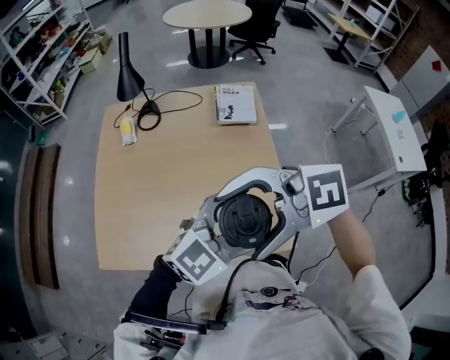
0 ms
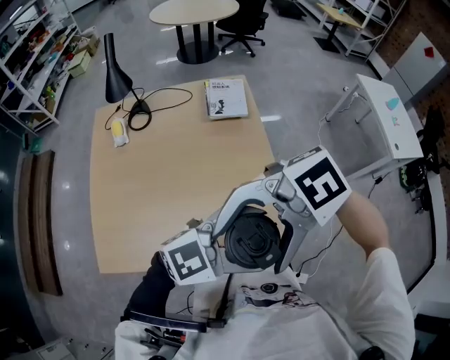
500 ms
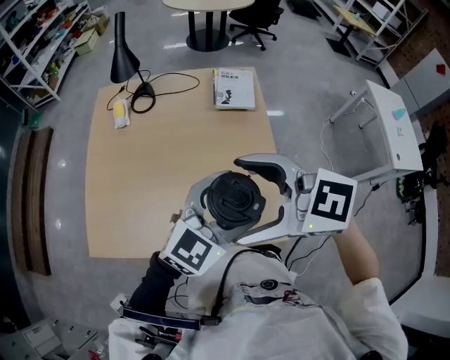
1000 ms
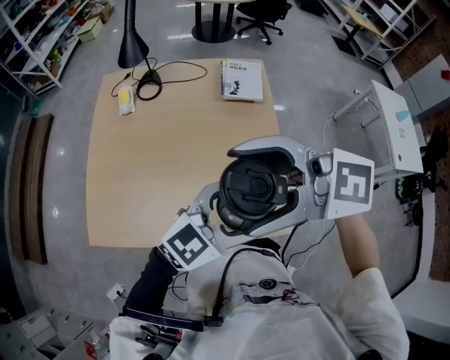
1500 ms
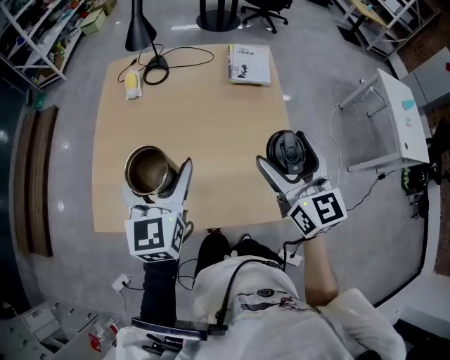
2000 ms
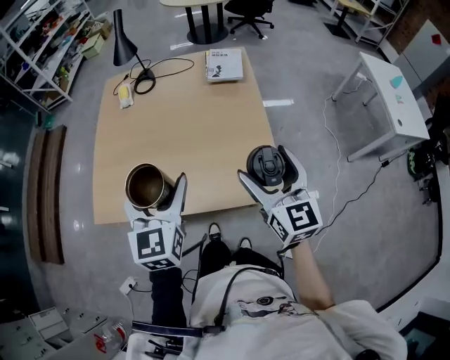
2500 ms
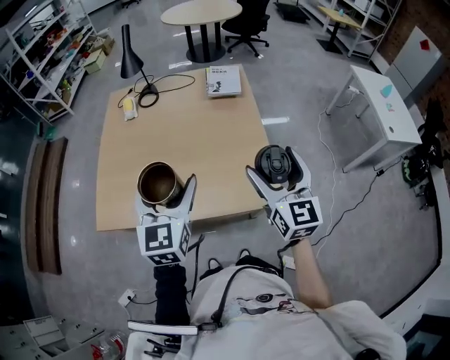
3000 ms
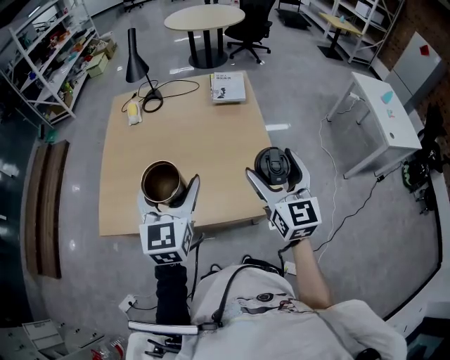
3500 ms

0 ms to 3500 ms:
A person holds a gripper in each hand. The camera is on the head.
0 ms to 2000 ms: The right gripper ends up roughly 15 cm from where it was, and changes its angle by roughly 90 degrees. Meanwhile the left gripper moves roughly 25 cm, and rotates roughly 70 degrees.
2000 ms to 3500 ms: The two grippers go some 15 cm backward and to the right.

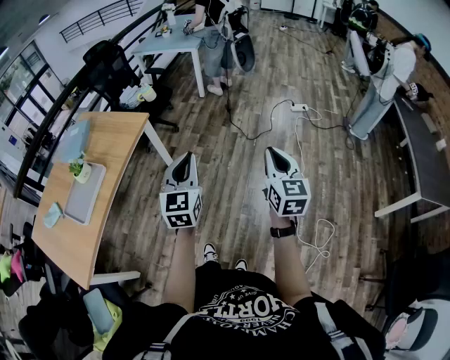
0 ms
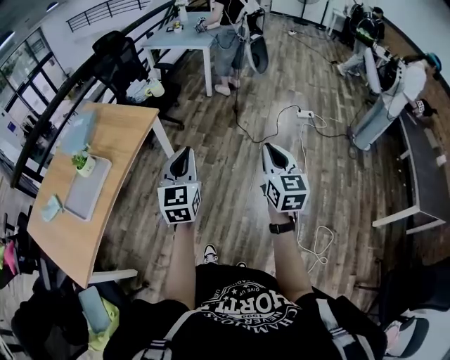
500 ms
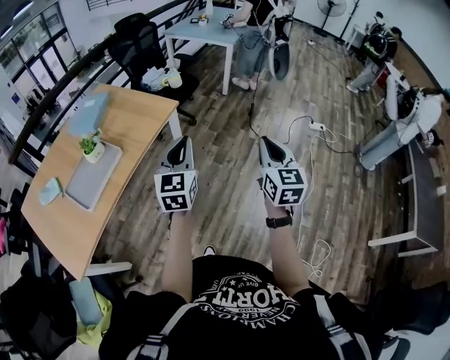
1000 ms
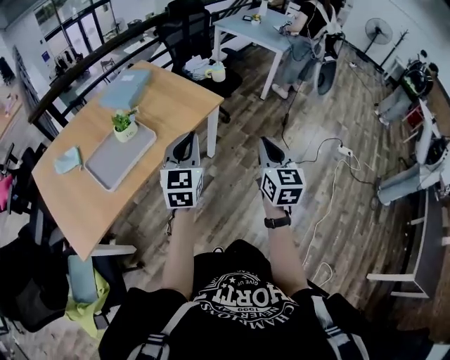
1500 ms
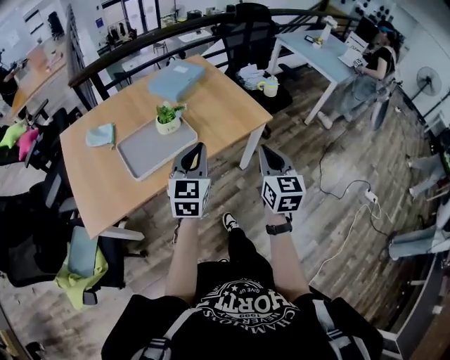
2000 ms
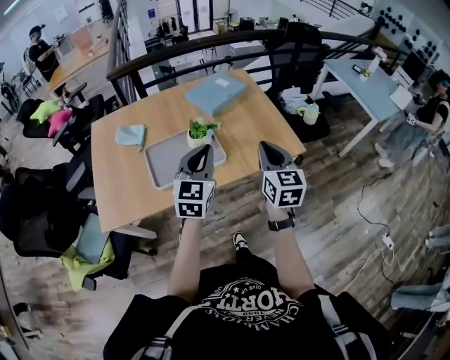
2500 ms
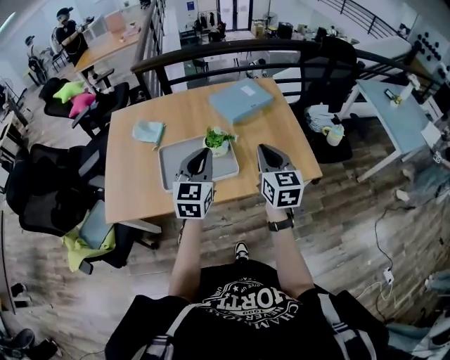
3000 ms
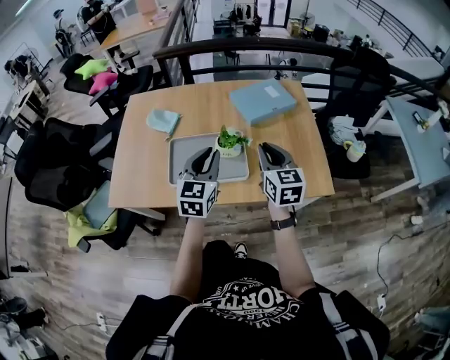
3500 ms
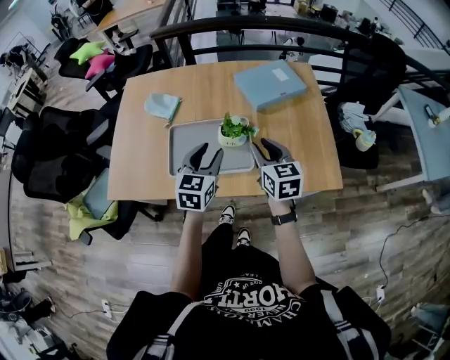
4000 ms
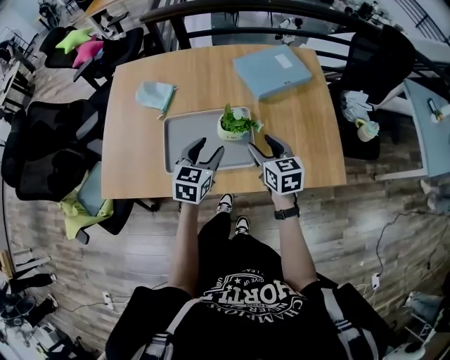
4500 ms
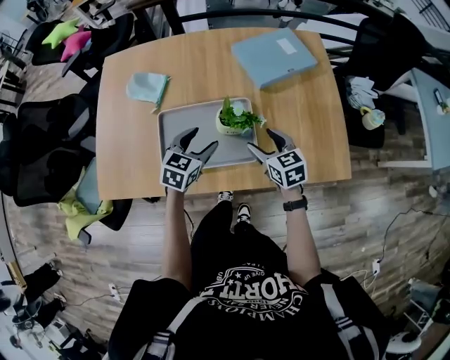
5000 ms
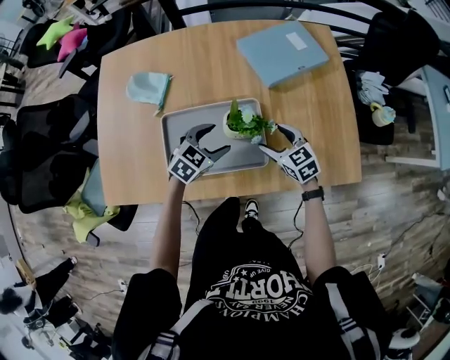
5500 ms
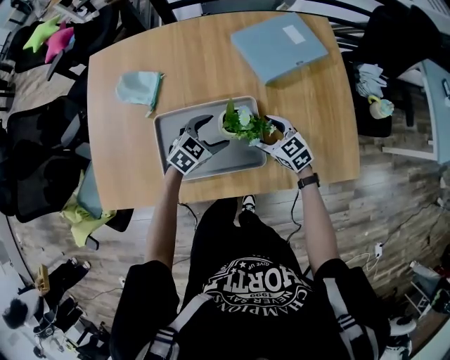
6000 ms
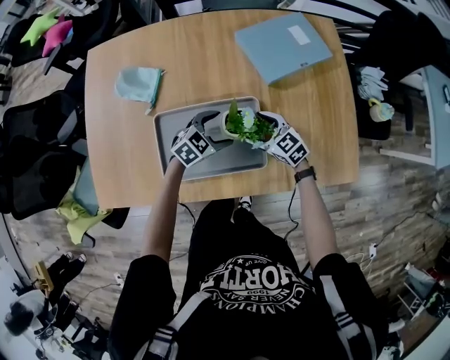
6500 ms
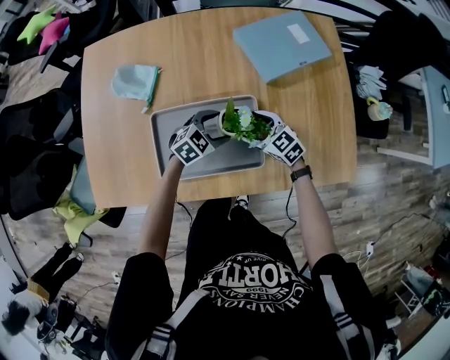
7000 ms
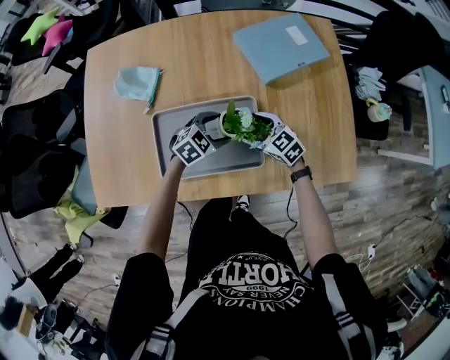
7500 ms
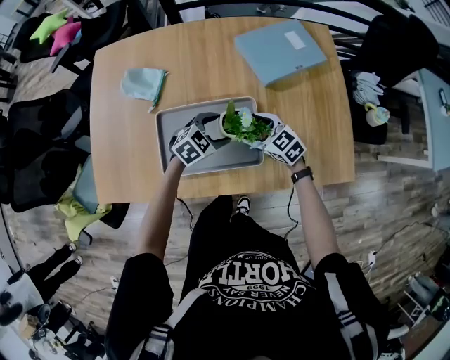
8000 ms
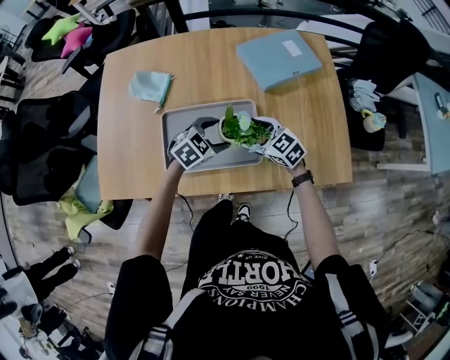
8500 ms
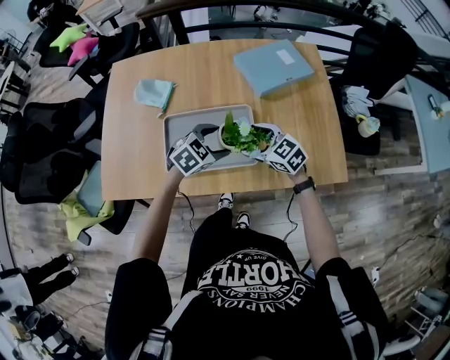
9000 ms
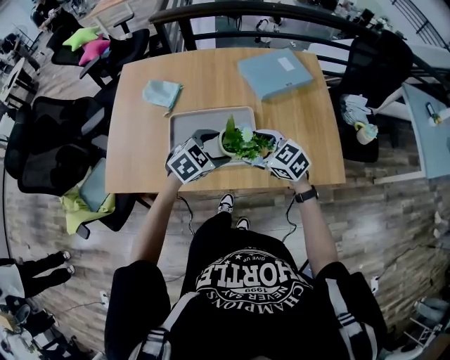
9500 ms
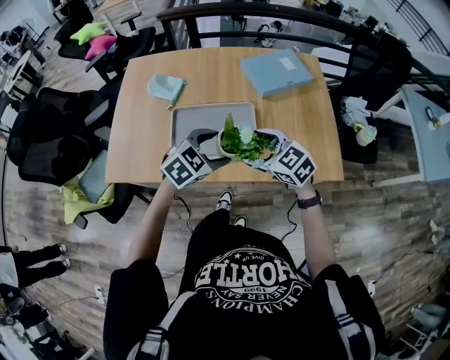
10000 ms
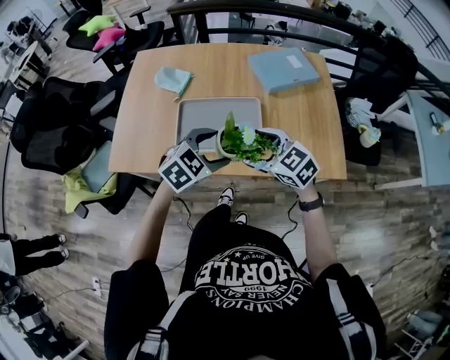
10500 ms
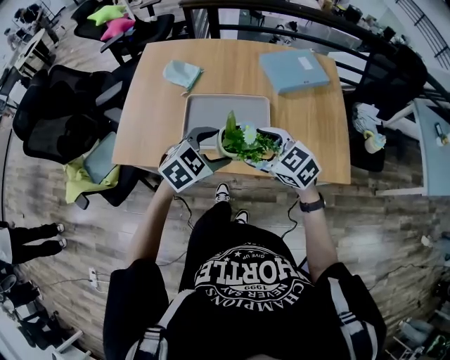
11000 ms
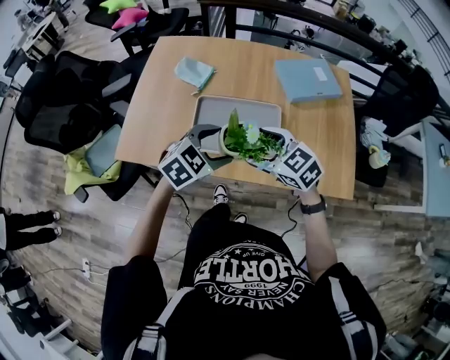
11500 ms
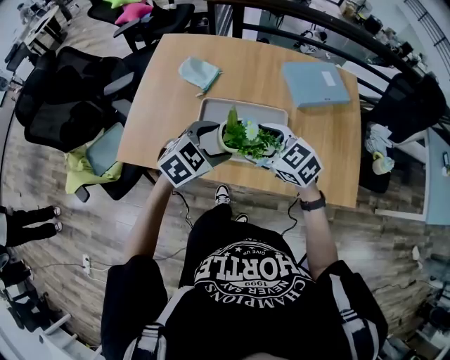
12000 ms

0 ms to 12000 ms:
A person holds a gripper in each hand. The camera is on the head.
0 ms to 2000 ms: The pair of grippers is taken roughly 50 cm. The left gripper rotates roughly 30 degrees; the right gripper rotates some 40 degrees.
2000 ms to 4000 ms: The left gripper shifts by approximately 25 cm, changes its angle by roughly 30 degrees, and opens its fingers. The right gripper moves about 35 cm, and turns by approximately 40 degrees.
4000 ms to 6000 ms: Both grippers travel together downward and forward, roughly 25 cm. The right gripper rotates approximately 30 degrees, and opens up. The left gripper changes its angle by about 50 degrees, and opens.
6000 ms to 8000 ms: The grippers make only small movements.
8000 ms to 10000 ms: The two grippers go approximately 25 cm upward and backward.
10000 ms to 12000 ms: The right gripper is displaced to the left and forward by about 10 cm; the left gripper is displaced to the left by about 10 cm.

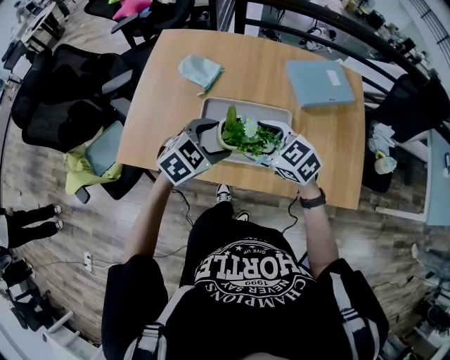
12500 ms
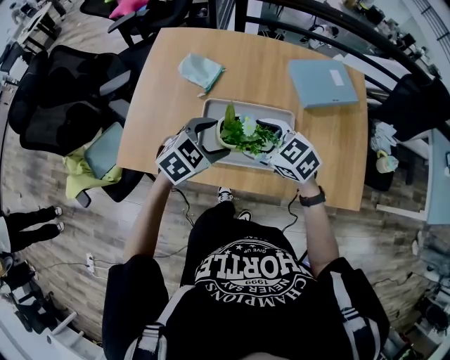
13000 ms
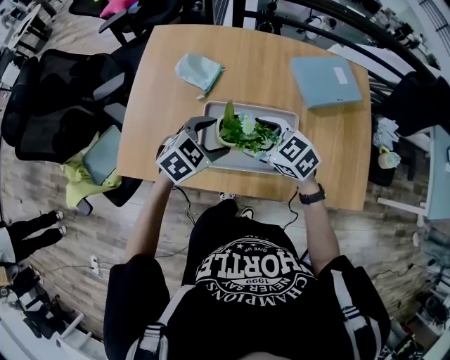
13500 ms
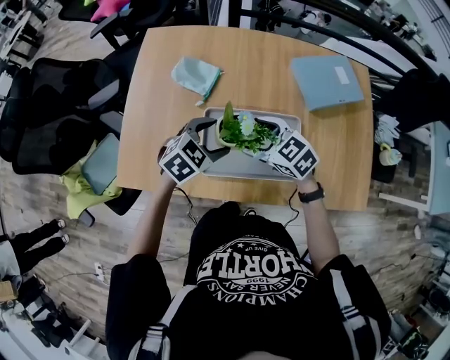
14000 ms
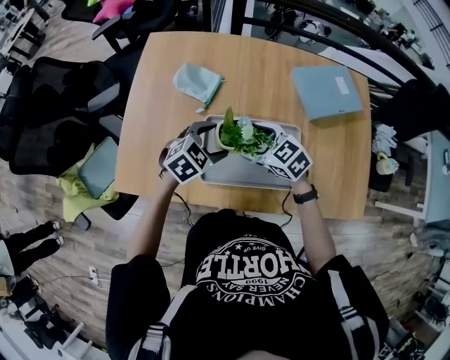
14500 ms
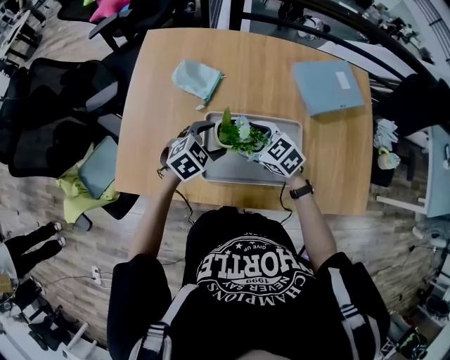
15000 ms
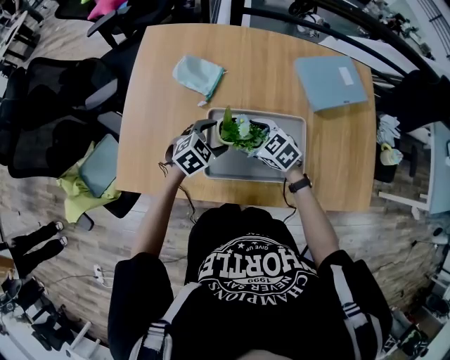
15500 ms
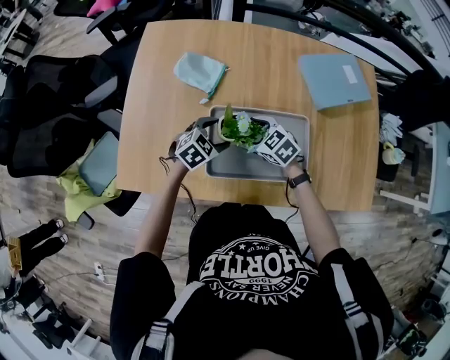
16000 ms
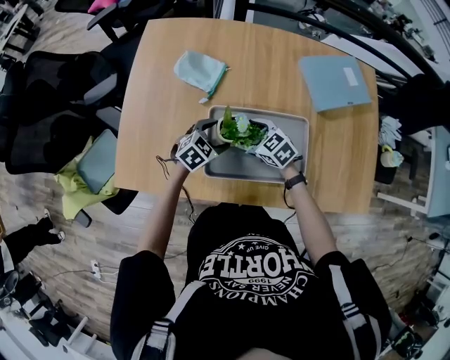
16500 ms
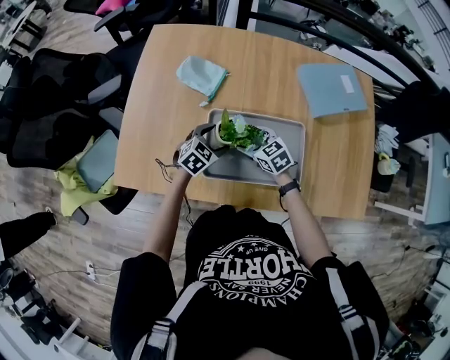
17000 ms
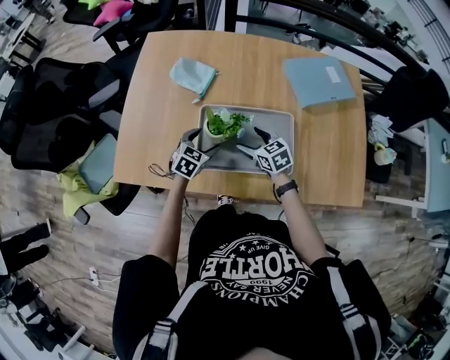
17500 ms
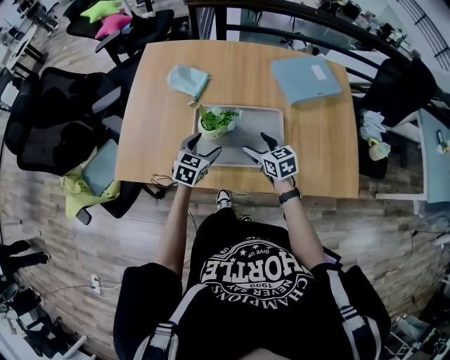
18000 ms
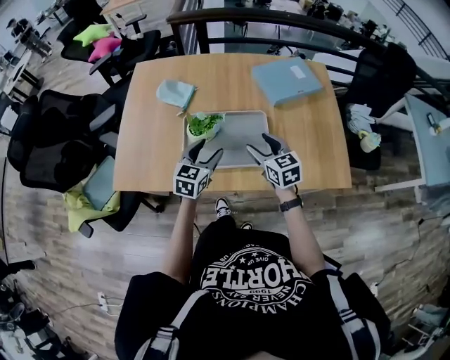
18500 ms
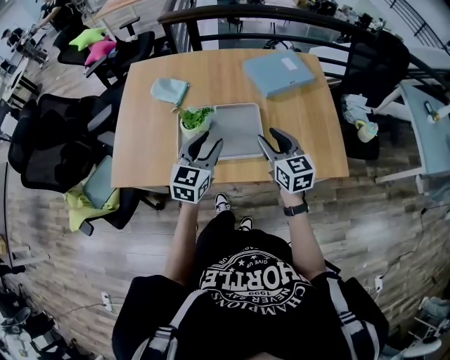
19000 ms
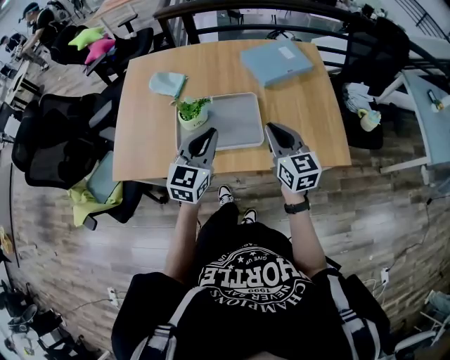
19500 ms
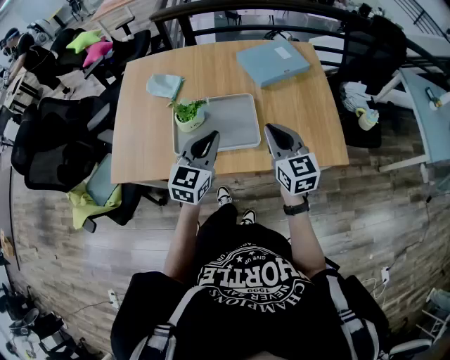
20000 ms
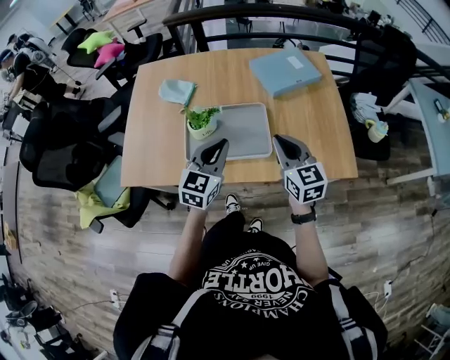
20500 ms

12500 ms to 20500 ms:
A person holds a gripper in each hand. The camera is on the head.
12500 ms to 14500 ms: The grippers both shift forward and downward by roughly 15 cm.
14500 ms to 16500 ms: The two grippers go roughly 15 cm downward.
16500 ms to 18500 ms: The left gripper heads upward and backward, covering roughly 20 cm, and changes its angle by approximately 30 degrees. The right gripper is displaced upward, to the right and backward by roughly 25 cm, and rotates some 40 degrees.
18500 ms to 20500 ms: Both grippers move upward, to the right and backward, about 15 cm. The right gripper closes, while the left gripper closes its fingers.

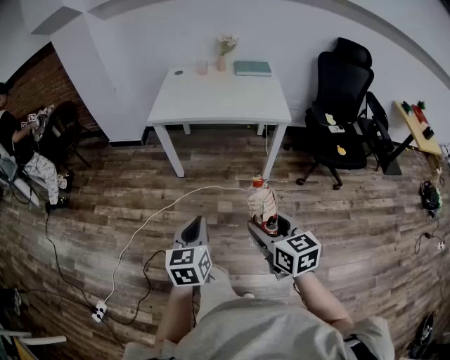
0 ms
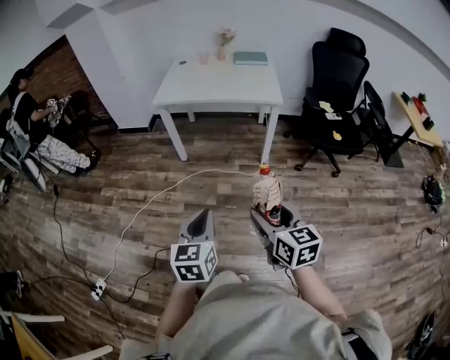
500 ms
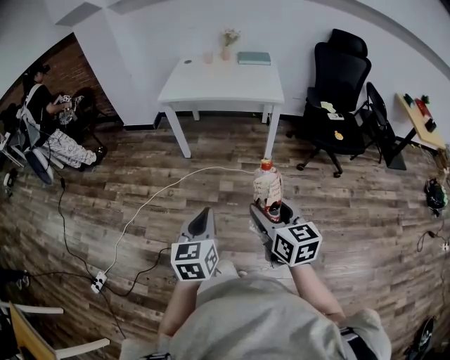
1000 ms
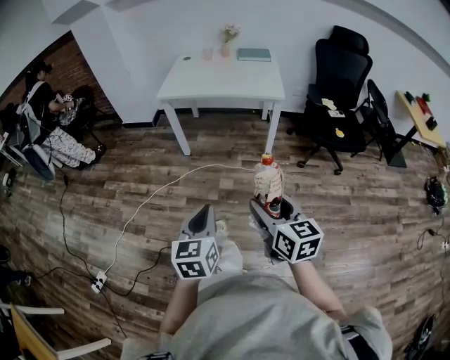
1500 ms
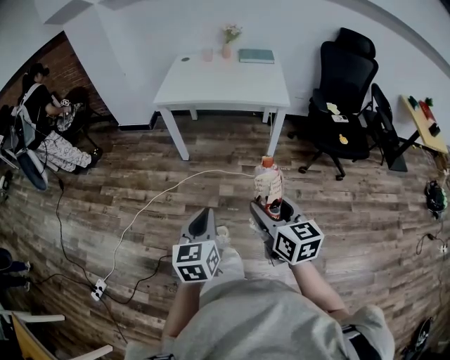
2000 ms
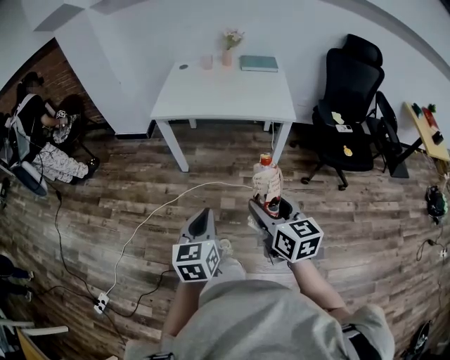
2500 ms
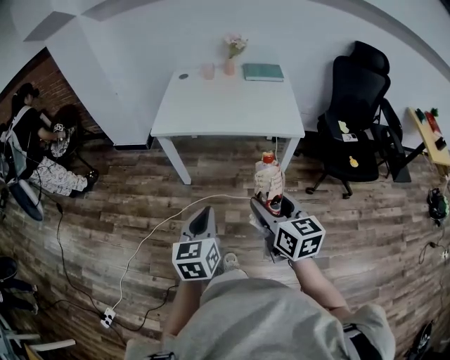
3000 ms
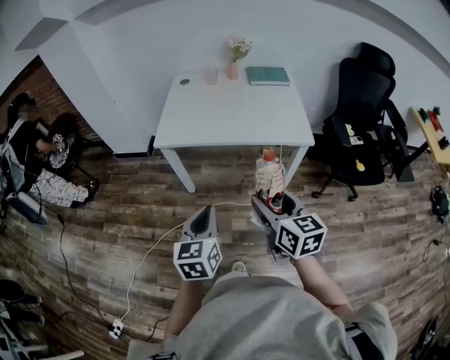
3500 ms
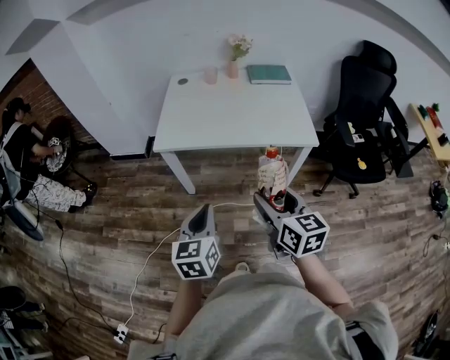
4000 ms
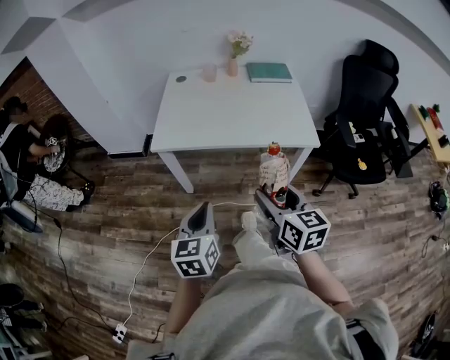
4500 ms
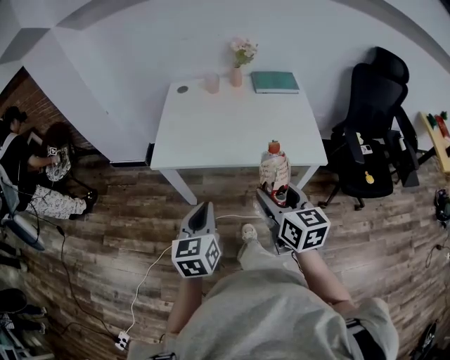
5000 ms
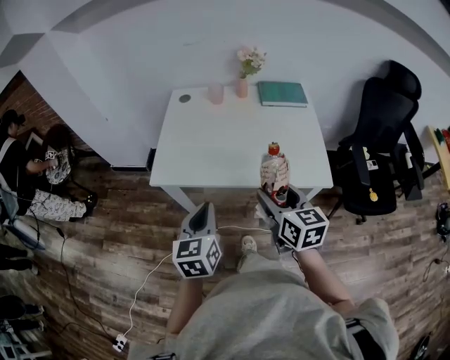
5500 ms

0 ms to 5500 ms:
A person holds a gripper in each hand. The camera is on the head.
0 ms to 2000 ms: The right gripper travels backward by some 5 cm. The left gripper travels backward and to the right by about 10 cm.
2000 ms to 3500 ms: Both grippers move forward, about 30 cm.
3500 ms to 5500 ms: The grippers both shift forward by roughly 25 cm.
